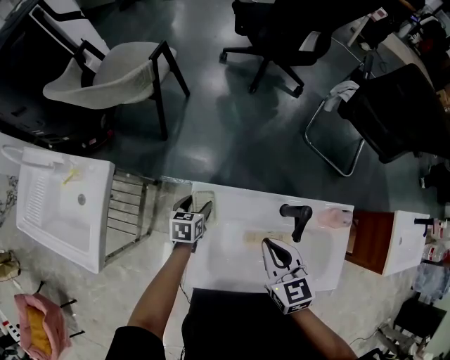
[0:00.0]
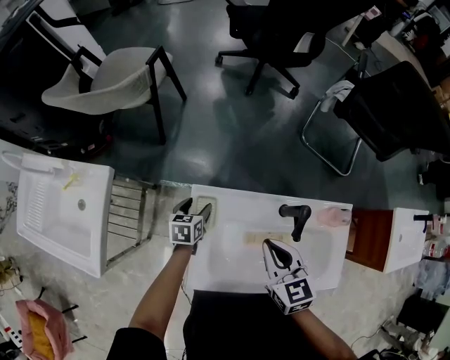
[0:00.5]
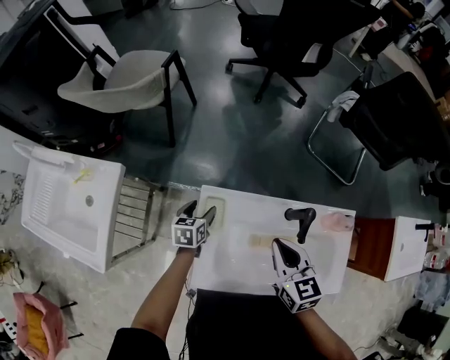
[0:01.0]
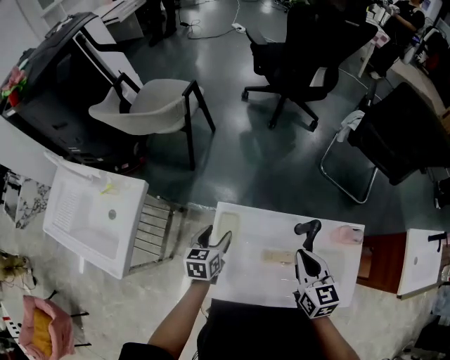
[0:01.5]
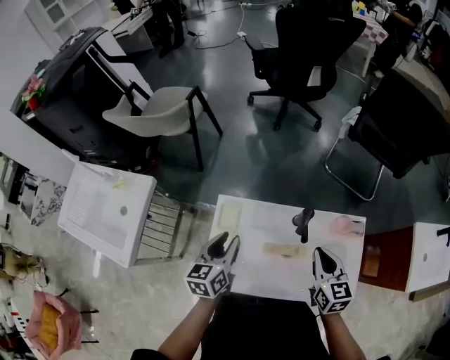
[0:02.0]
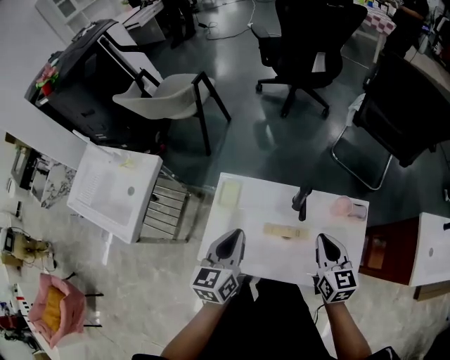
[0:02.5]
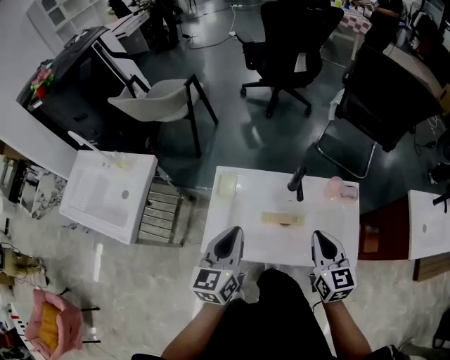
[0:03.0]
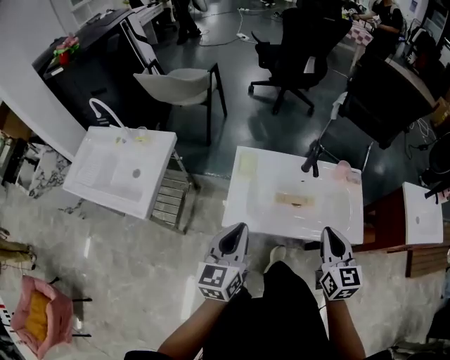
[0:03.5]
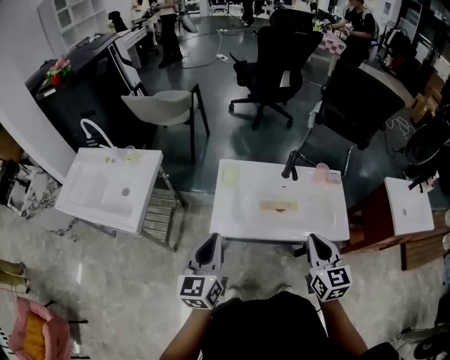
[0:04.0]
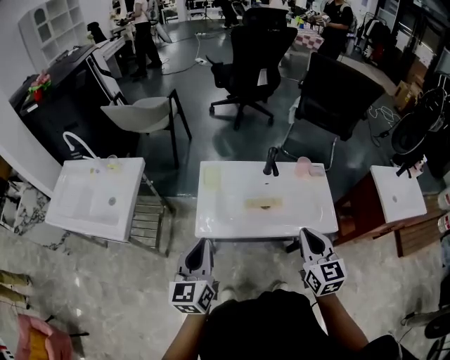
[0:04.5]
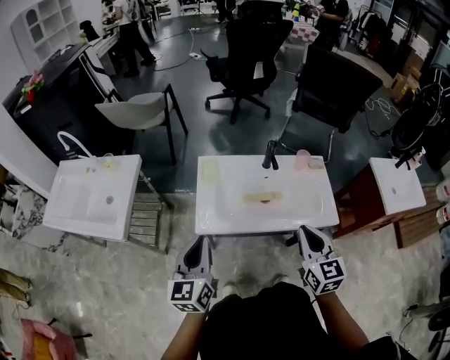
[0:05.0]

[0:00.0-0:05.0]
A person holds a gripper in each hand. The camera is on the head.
0:00.0 to 0:02.5: The left gripper goes approximately 35 cm upward, backward and to the right, rotates roughly 30 degrees, and closes up, while the right gripper heads to the right and backward, covering some 20 cm.
0:02.5 to 0:05.0: The left gripper moves backward and to the left, approximately 30 cm, while the right gripper goes about 25 cm backward.

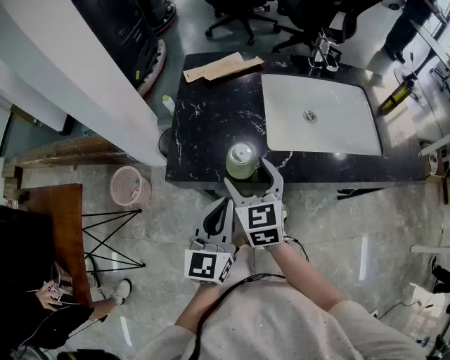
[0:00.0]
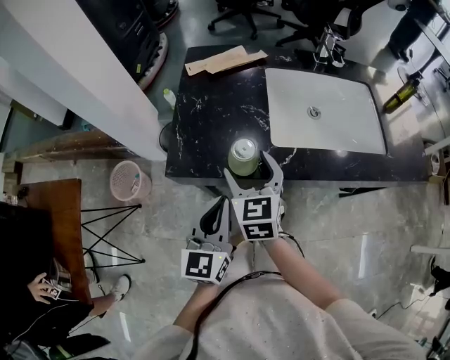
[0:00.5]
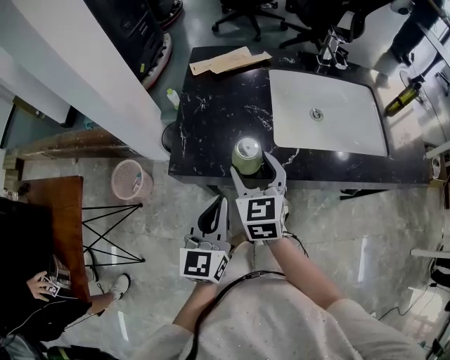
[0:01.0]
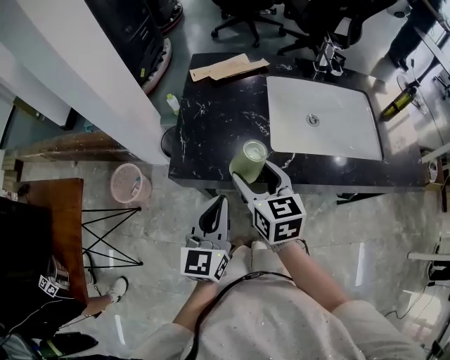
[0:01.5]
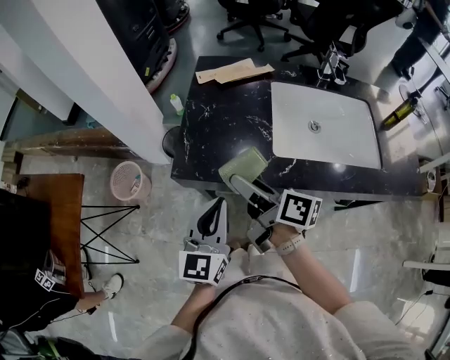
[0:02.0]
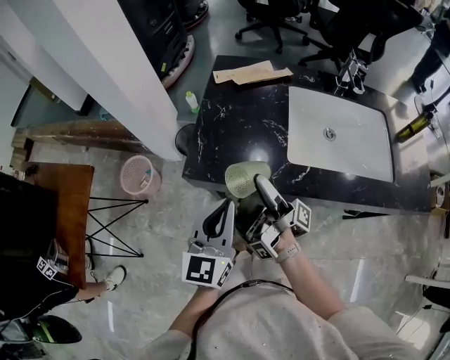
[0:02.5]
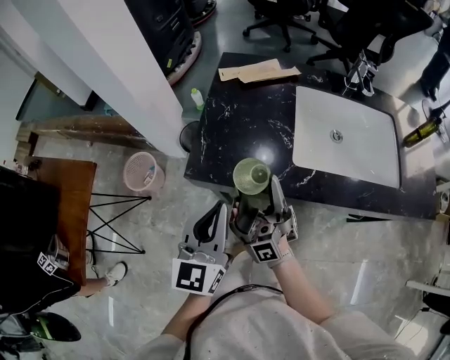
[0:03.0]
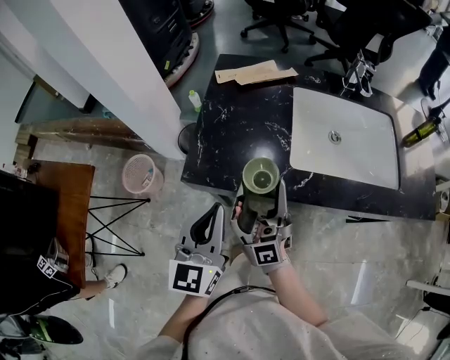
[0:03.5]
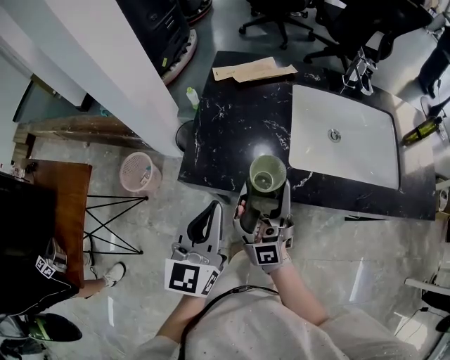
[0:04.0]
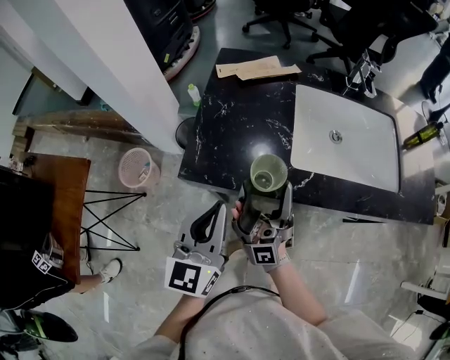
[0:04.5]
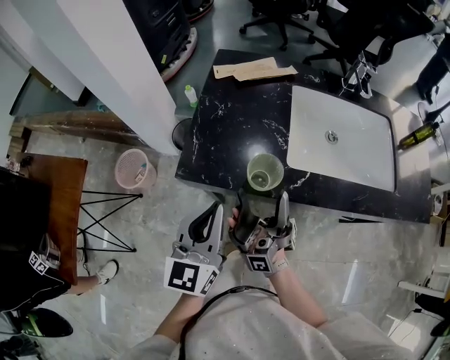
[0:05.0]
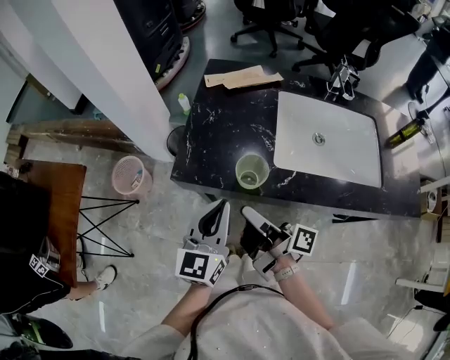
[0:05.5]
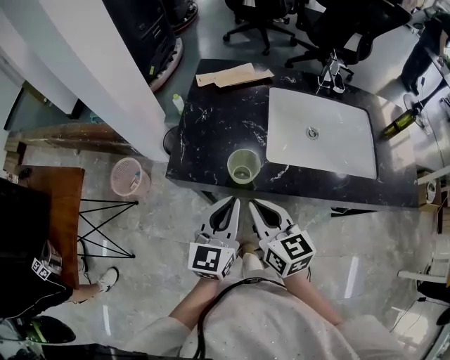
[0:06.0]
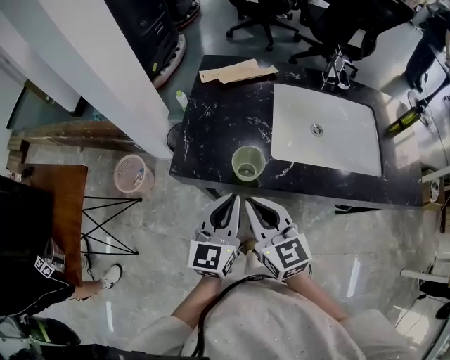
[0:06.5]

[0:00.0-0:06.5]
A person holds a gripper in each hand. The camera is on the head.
0:04.5 to 0:06.5: The left gripper moves about 5 cm.

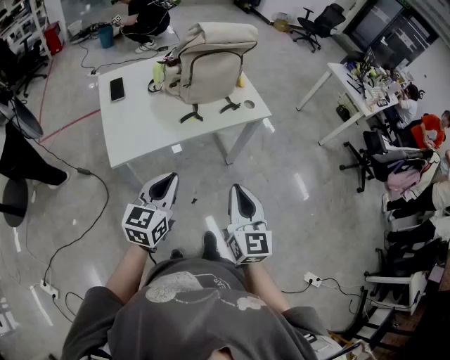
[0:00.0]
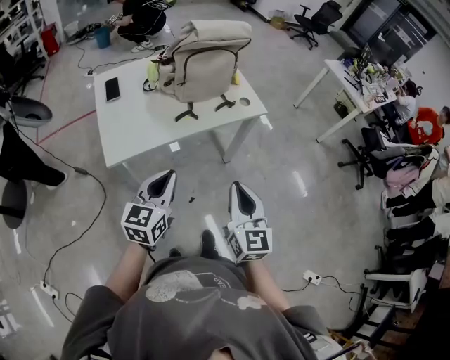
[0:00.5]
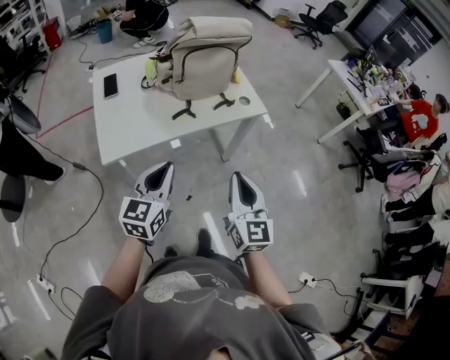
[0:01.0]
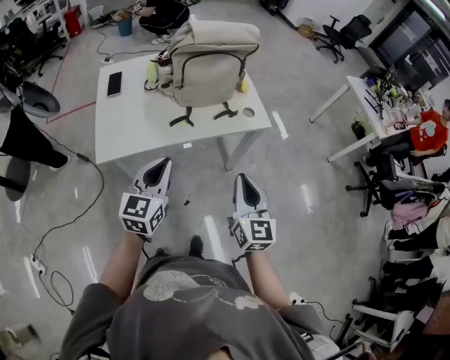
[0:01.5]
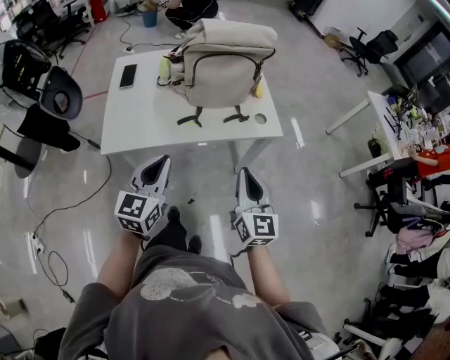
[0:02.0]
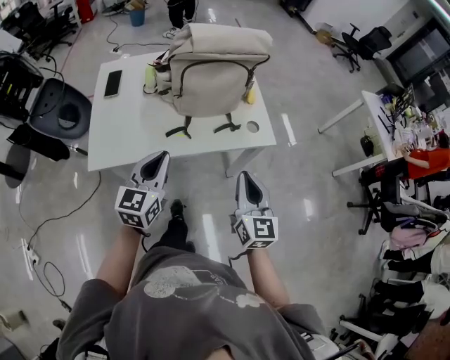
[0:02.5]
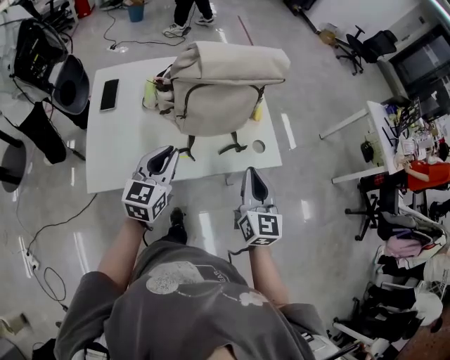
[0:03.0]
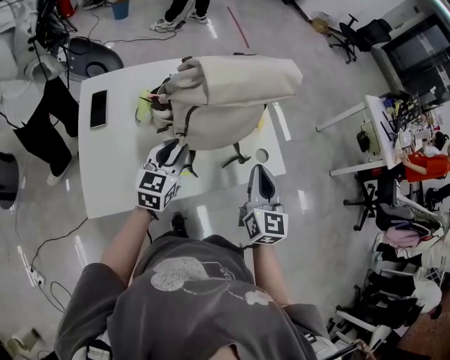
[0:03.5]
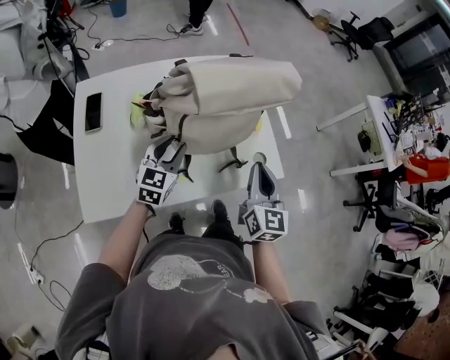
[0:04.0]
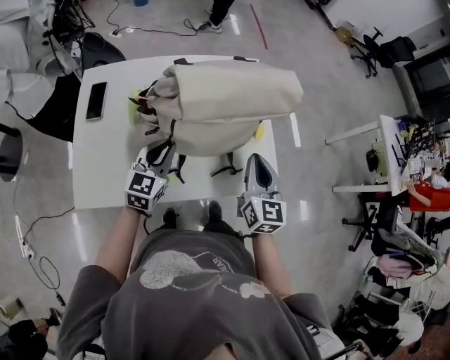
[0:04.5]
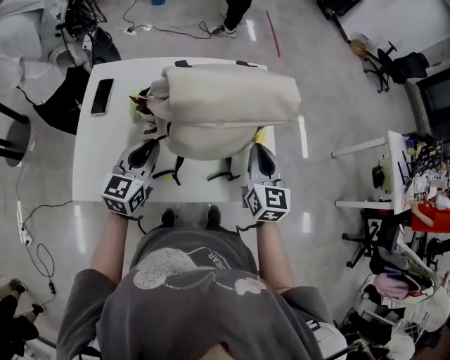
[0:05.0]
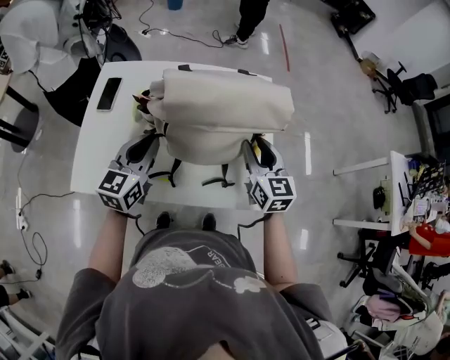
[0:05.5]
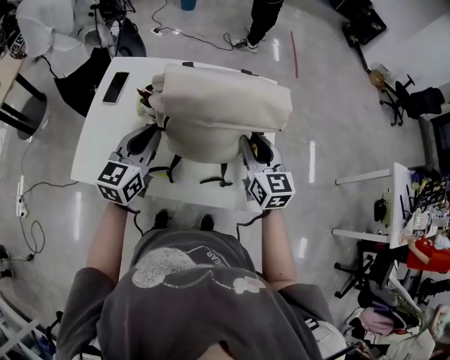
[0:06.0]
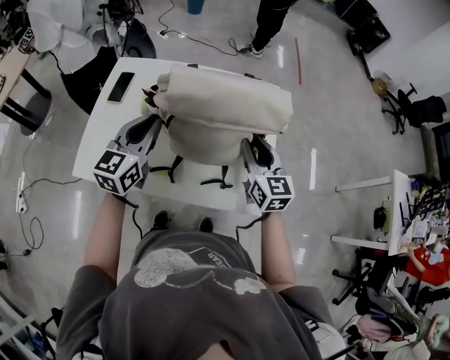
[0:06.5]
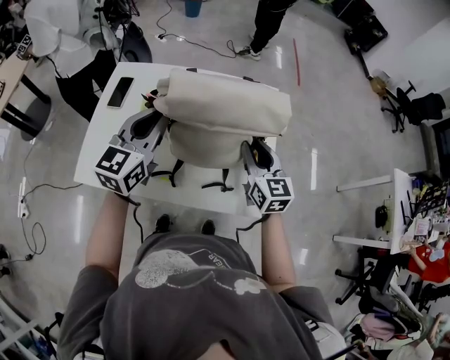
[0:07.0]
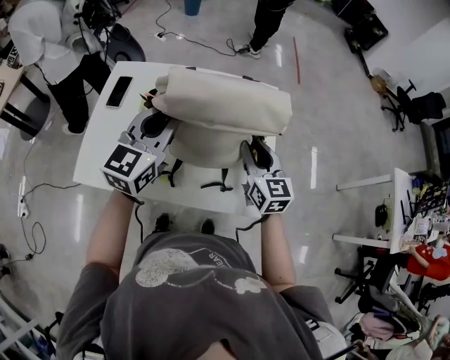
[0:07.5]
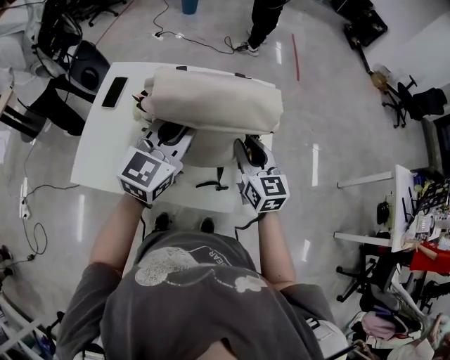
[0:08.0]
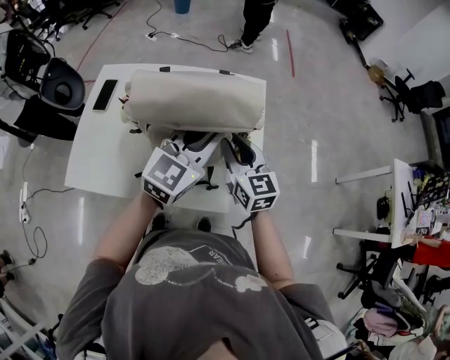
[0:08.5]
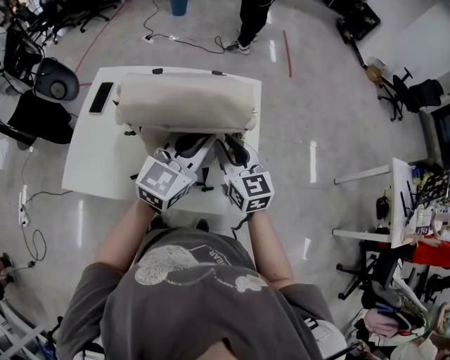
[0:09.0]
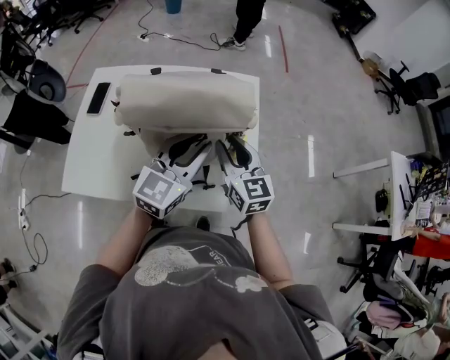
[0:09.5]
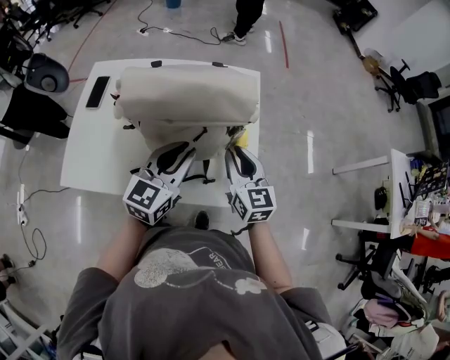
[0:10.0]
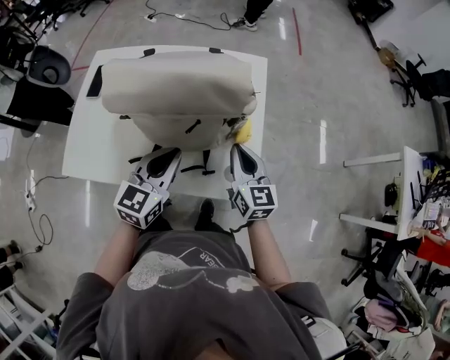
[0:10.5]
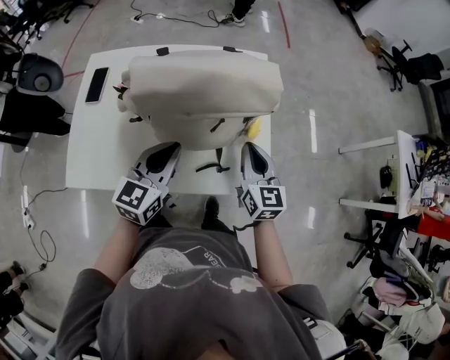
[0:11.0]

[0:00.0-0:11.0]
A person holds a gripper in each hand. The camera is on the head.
0:00.0 to 0:02.0: The right gripper travels forward and to the right by approximately 20 cm. The left gripper is displaced forward and to the right by approximately 10 cm.
0:02.0 to 0:03.5: Both grippers travel together forward, some 30 cm. The left gripper opens up.
0:03.5 to 0:05.5: The right gripper is displaced forward by some 20 cm, changes its angle by about 30 degrees, and opens. Meanwhile the left gripper travels upward by some 5 cm.
0:05.5 to 0:07.5: The left gripper moves upward and to the right, some 10 cm.
0:07.5 to 0:09.0: The left gripper is displaced to the right by about 15 cm.
0:09.0 to 0:11.0: The right gripper changes place by roughly 5 cm, and closes its fingers. The left gripper travels to the left, downward and backward by roughly 15 cm.

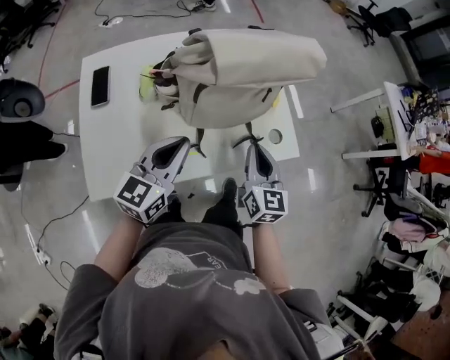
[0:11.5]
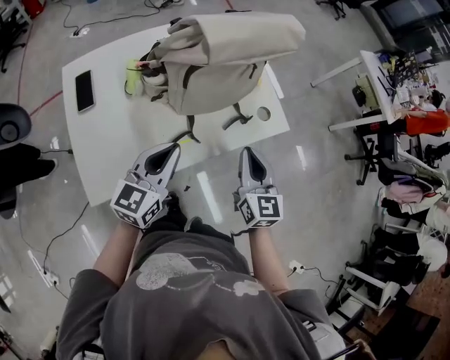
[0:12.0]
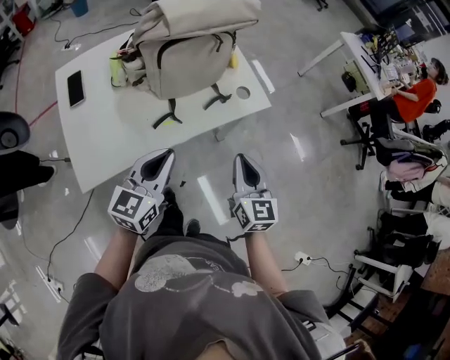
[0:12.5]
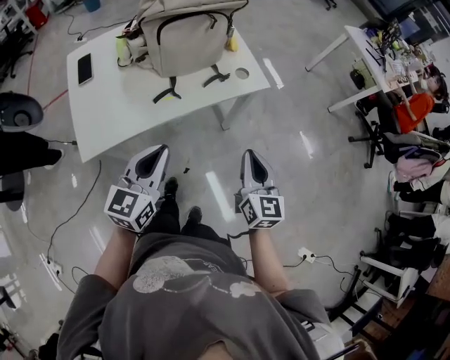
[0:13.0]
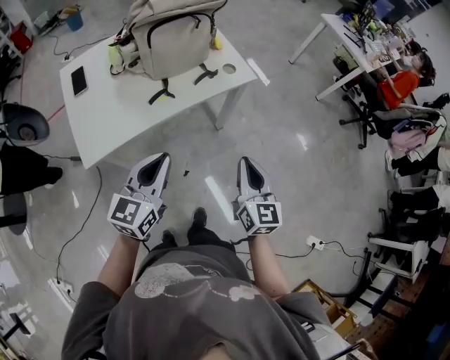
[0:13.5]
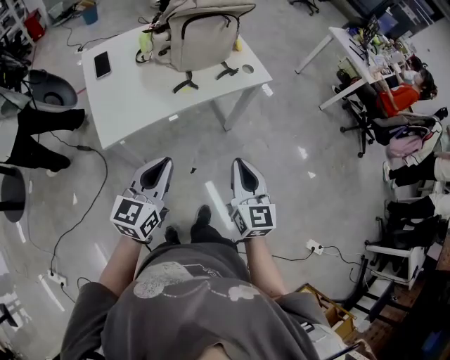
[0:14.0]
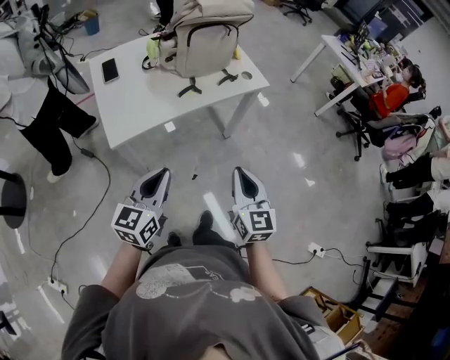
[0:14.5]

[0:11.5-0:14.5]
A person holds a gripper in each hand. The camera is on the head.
0:11.5 to 0:13.0: Both grippers travel together backward and to the right, roughly 25 cm.
0:13.0 to 0:14.5: Both grippers move backward and to the left, some 25 cm.

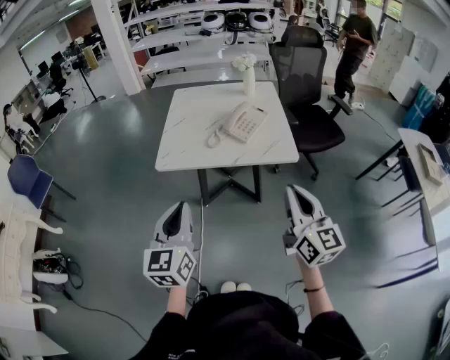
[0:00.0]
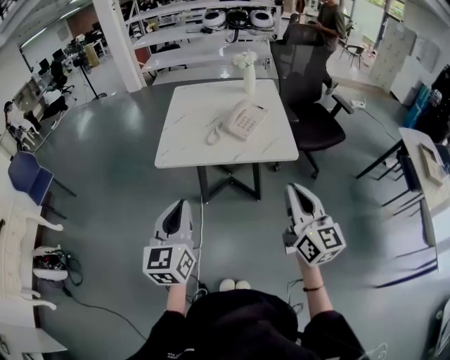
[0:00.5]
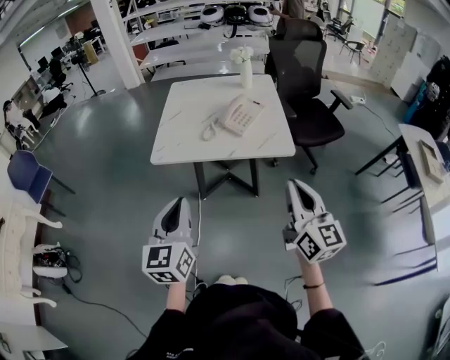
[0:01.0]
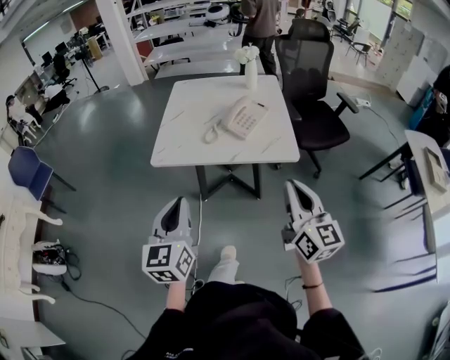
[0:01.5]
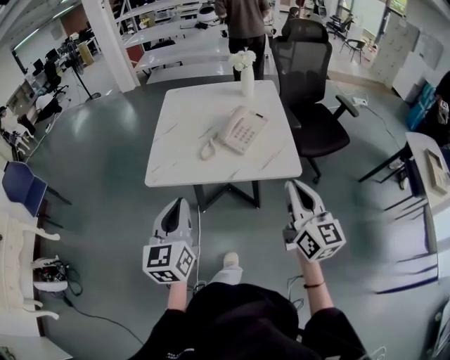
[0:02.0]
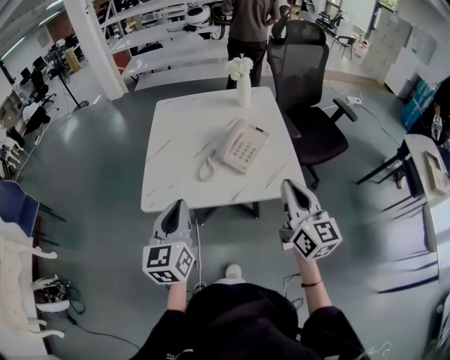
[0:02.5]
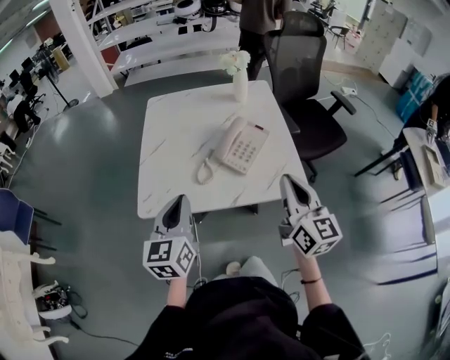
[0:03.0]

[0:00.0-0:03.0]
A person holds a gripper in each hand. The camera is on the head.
0:00.0 to 0:01.5: The right gripper ends up some 5 cm from where it was.
0:01.5 to 0:03.0: Both grippers travel together forward, some 25 cm.
